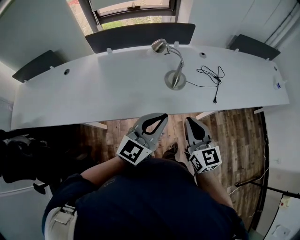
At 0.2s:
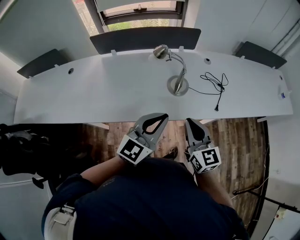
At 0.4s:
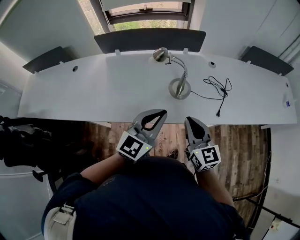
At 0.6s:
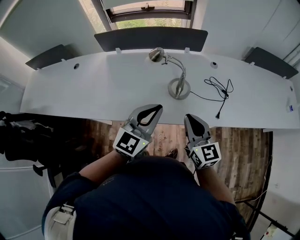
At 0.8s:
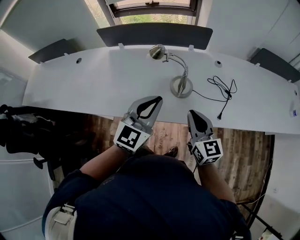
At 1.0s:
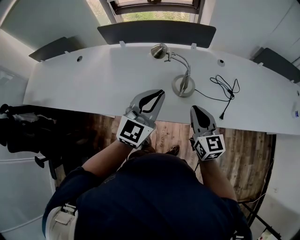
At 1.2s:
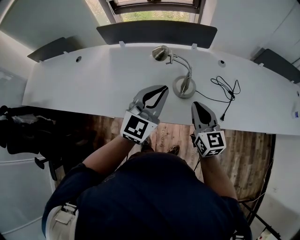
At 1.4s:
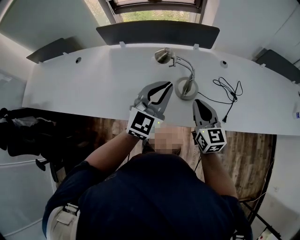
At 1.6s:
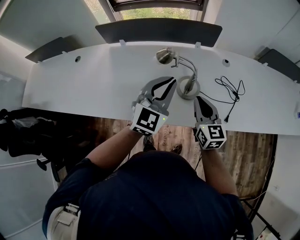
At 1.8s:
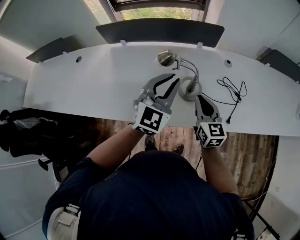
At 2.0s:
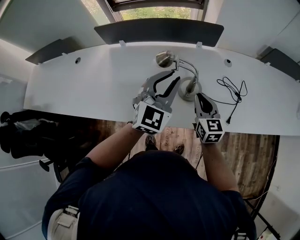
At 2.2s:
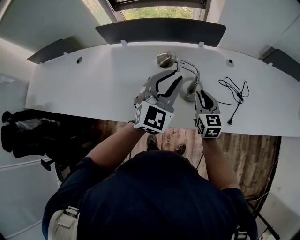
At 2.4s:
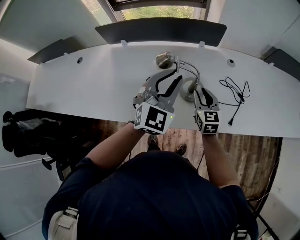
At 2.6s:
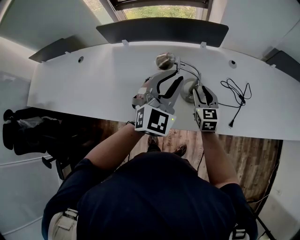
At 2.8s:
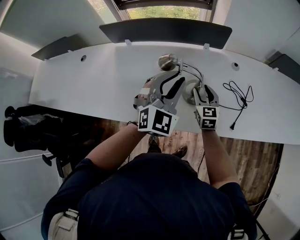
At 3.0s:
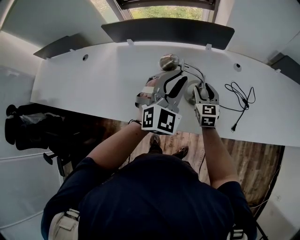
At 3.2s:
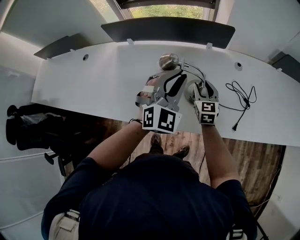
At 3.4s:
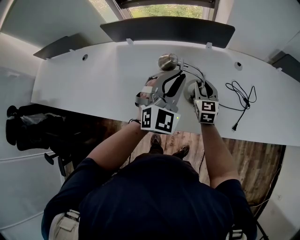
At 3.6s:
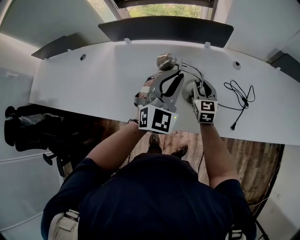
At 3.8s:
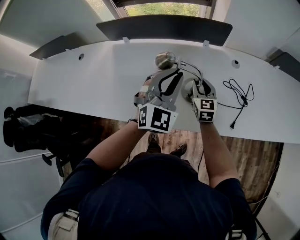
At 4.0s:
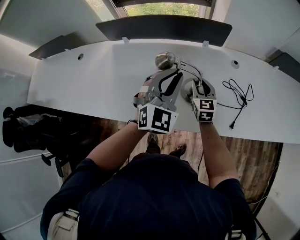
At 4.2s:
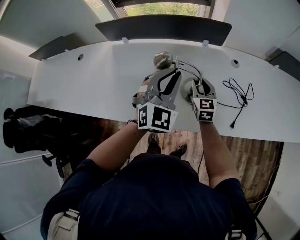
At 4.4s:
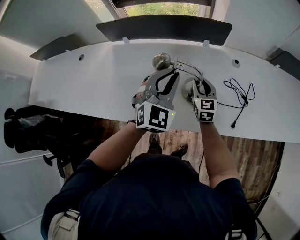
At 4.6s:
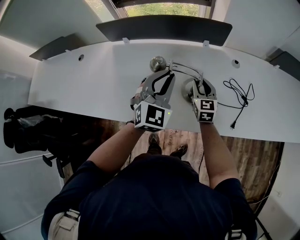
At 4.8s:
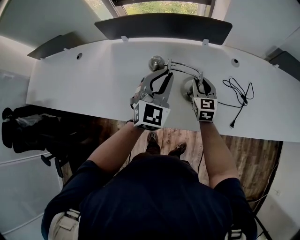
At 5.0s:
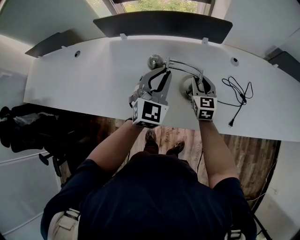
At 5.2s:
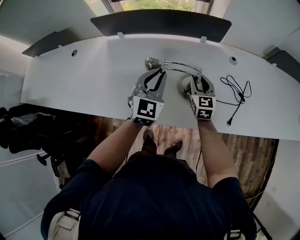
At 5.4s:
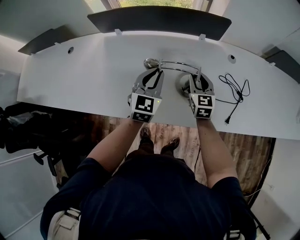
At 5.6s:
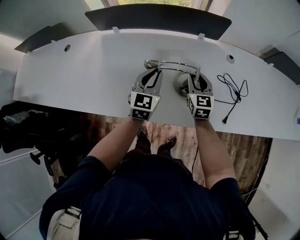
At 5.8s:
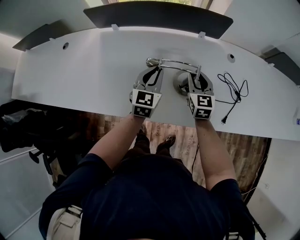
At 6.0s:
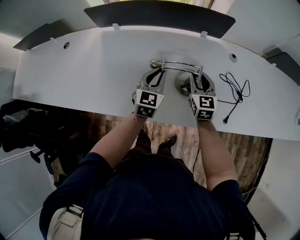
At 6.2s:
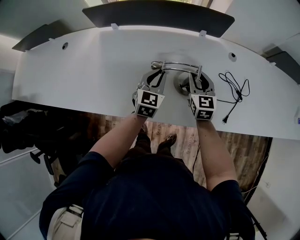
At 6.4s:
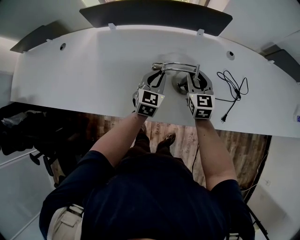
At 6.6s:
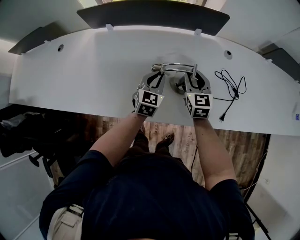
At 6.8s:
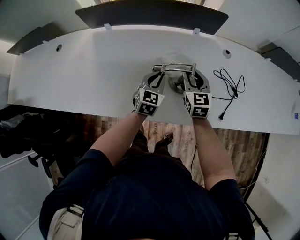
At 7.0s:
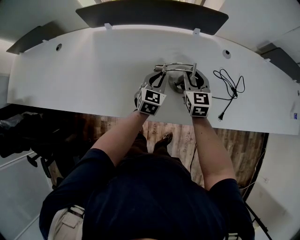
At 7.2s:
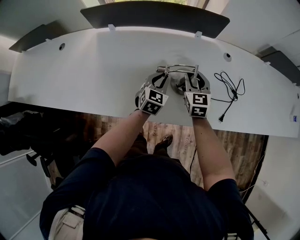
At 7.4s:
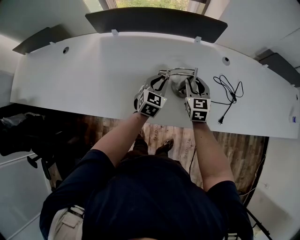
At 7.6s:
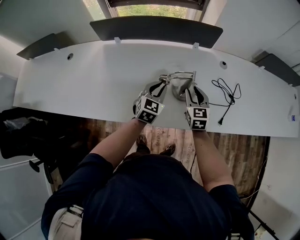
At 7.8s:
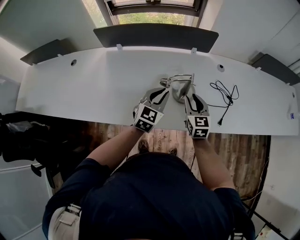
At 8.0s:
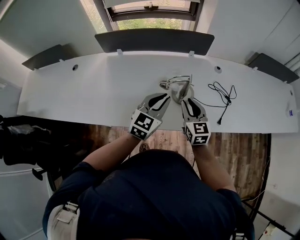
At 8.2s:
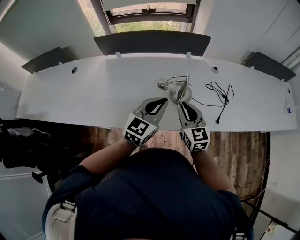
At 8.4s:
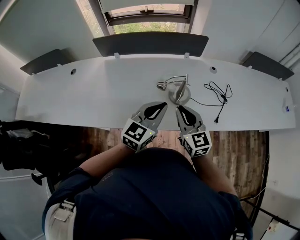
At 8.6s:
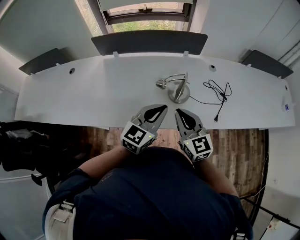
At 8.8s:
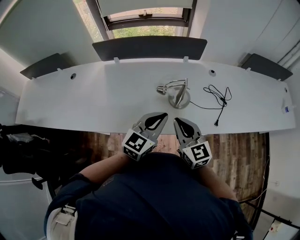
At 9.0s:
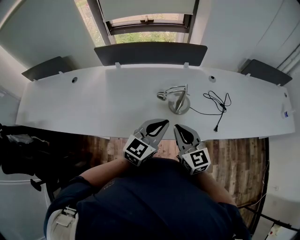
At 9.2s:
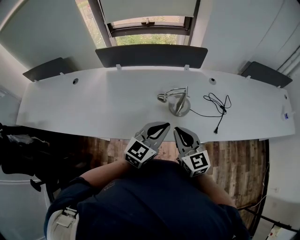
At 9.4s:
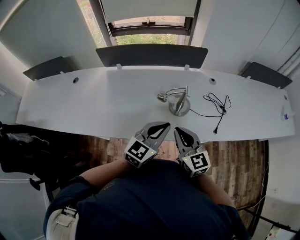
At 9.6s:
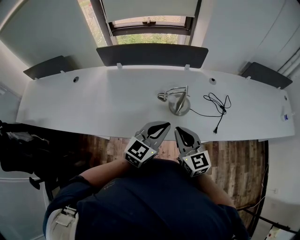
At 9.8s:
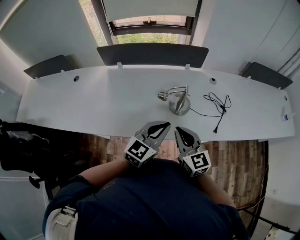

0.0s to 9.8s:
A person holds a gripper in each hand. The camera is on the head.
0.0s to 1.4s: The two grippers go about 20 cm forward. The left gripper swivels approximately 20 degrees.
1.4s to 2.8s: The right gripper is displaced forward and downward by approximately 20 cm, and opens up. Meanwhile the left gripper heads forward, covering roughly 5 cm, and turns by about 20 degrees.
2.8s to 4.2s: There are only small adjustments of the grippers.
4.2s to 5.6s: The left gripper moves downward and to the left, roughly 15 cm, and turns by some 30 degrees.
5.6s to 7.0s: The left gripper shifts approximately 10 cm downward.
7.0s to 8.4s: The right gripper is displaced backward and upward by approximately 25 cm, and closes. Meanwhile the left gripper is displaced upward and backward by about 30 cm, and turns by approximately 30 degrees.
8.4s to 9.8s: The grippers make only small movements.

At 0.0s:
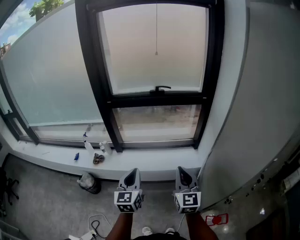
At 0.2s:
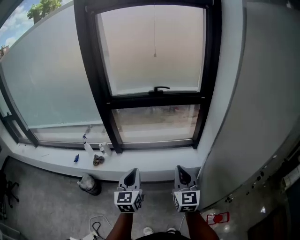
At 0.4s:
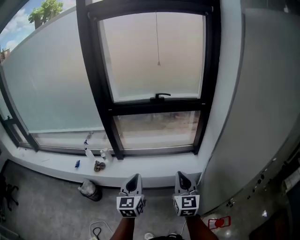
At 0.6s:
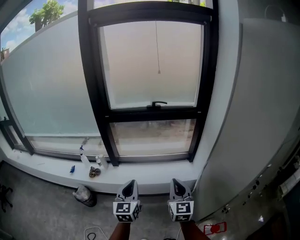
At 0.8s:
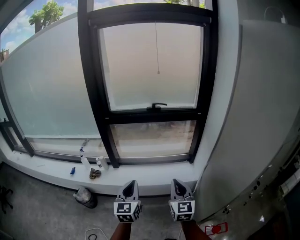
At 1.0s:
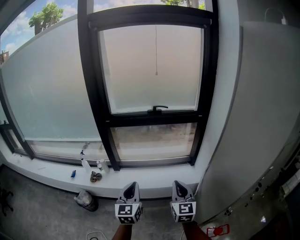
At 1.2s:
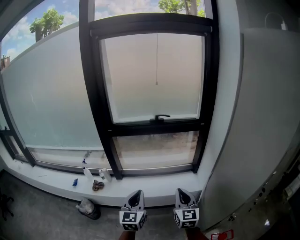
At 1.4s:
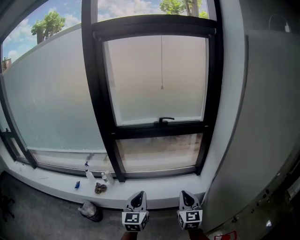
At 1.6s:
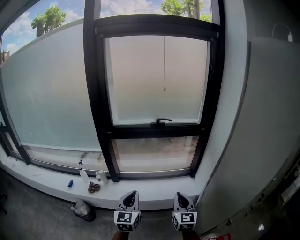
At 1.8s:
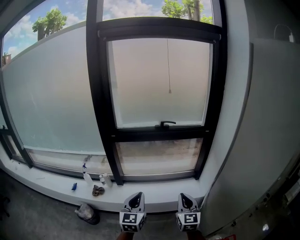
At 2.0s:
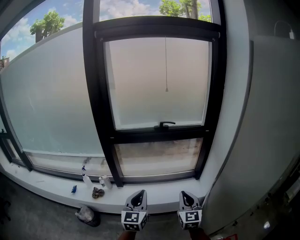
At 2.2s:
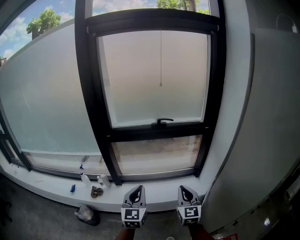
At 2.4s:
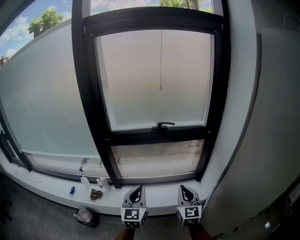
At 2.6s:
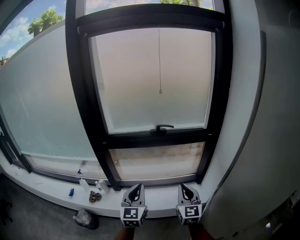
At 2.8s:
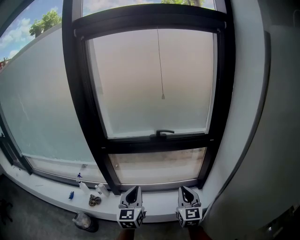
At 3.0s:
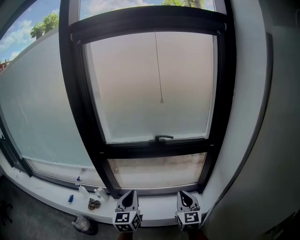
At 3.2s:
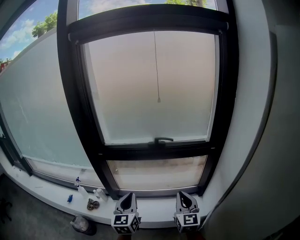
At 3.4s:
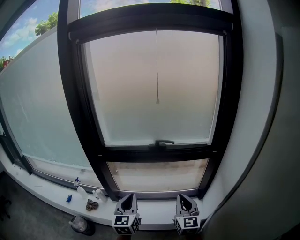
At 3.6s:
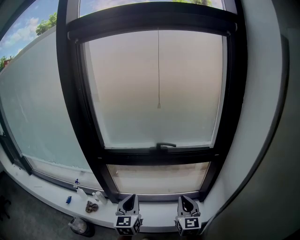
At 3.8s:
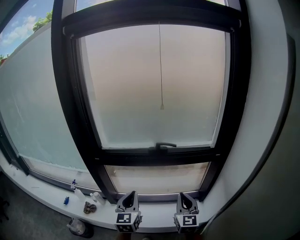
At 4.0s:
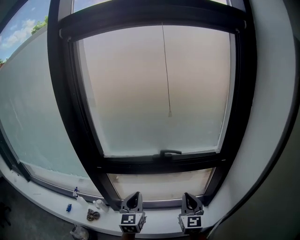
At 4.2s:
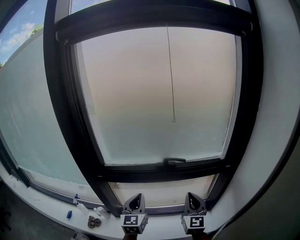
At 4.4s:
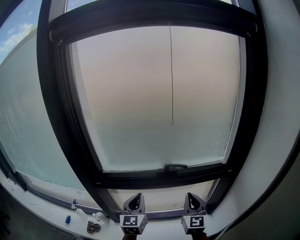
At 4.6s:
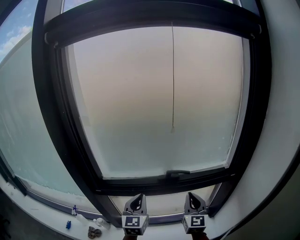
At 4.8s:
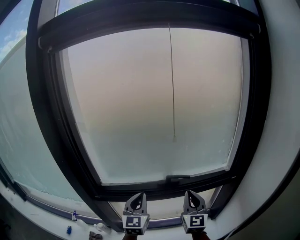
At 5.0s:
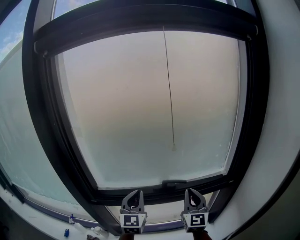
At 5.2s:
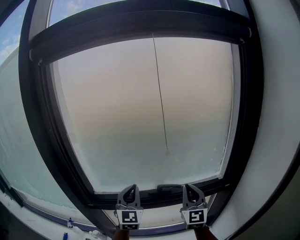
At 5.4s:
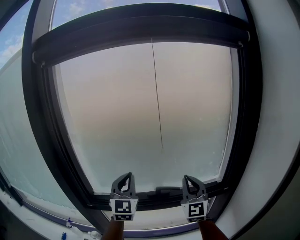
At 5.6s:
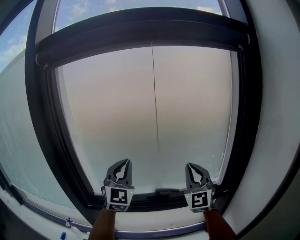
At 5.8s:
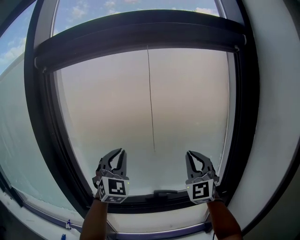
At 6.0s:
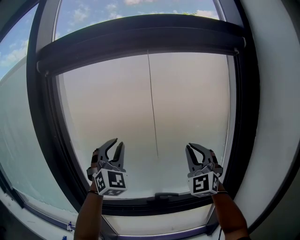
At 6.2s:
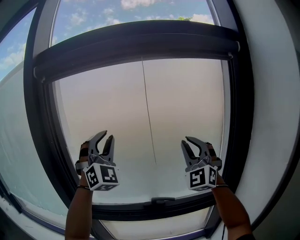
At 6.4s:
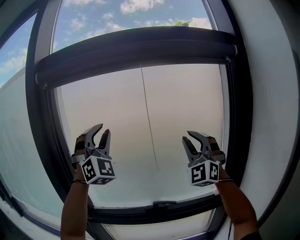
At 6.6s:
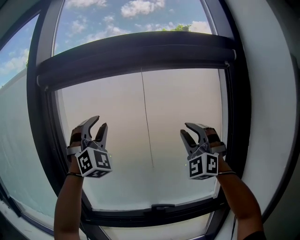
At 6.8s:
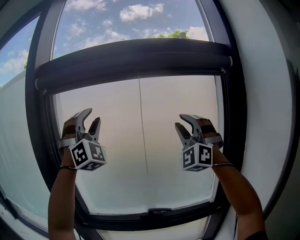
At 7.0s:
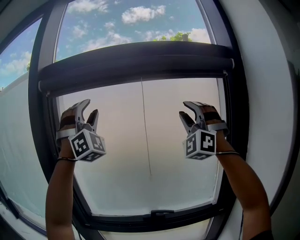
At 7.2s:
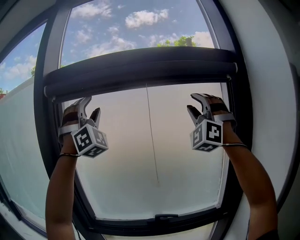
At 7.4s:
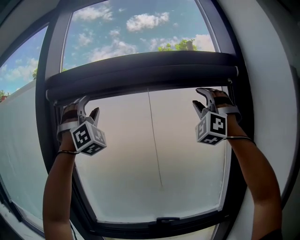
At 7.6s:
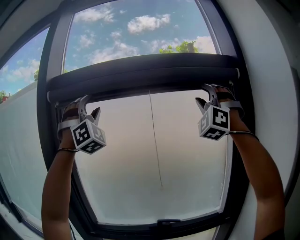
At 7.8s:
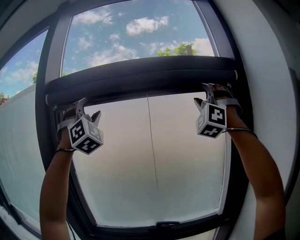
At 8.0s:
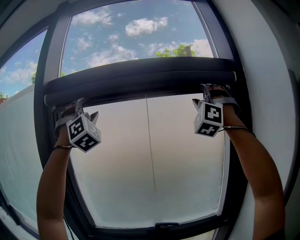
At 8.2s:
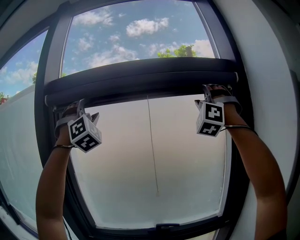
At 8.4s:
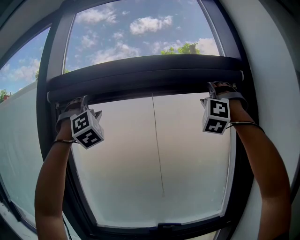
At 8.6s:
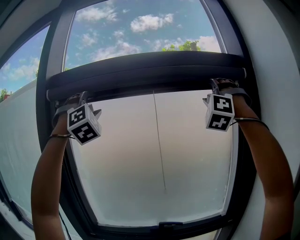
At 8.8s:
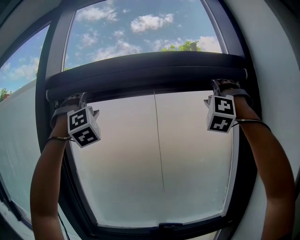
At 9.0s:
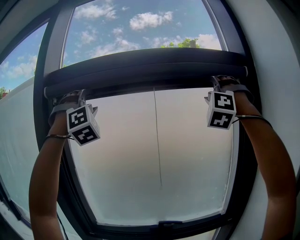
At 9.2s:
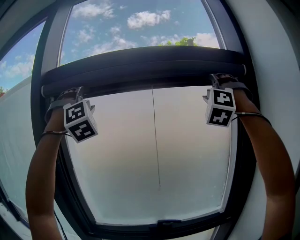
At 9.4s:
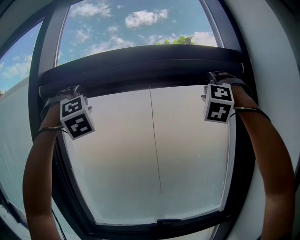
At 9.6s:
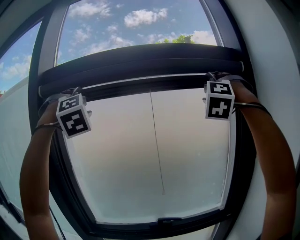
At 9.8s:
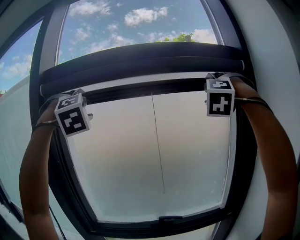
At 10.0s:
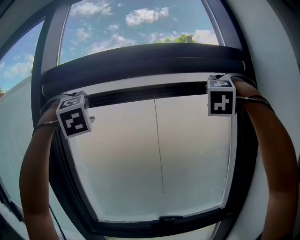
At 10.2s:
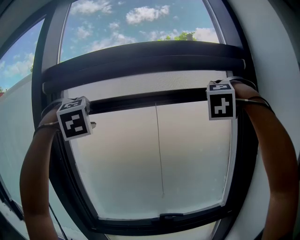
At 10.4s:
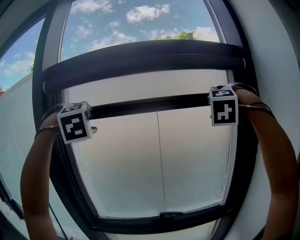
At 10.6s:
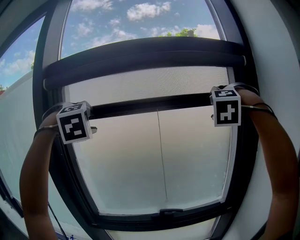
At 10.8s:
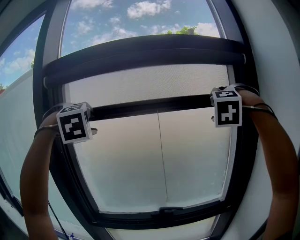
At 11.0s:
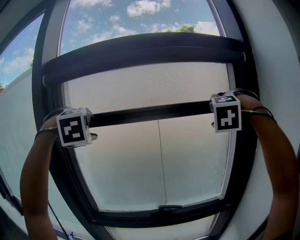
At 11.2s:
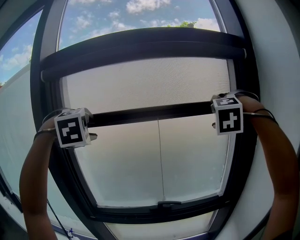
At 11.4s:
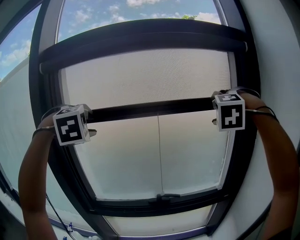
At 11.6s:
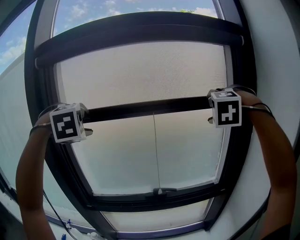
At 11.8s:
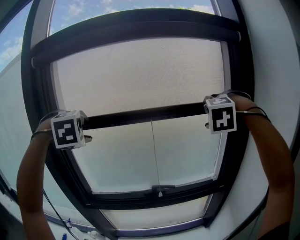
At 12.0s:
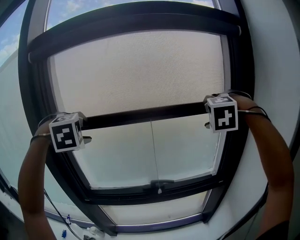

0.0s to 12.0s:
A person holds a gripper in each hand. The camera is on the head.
0.0s to 1.6s: The left gripper moves to the left, approximately 5 cm. Meanwhile the right gripper ends up some 5 cm from where it was.
1.6s to 3.0s: The two grippers go some 20 cm forward.
3.0s to 4.4s: Both grippers move forward, approximately 25 cm.
4.4s to 6.0s: The left gripper heads upward, covering approximately 35 cm, and twists some 60 degrees clockwise, seen from behind. The right gripper goes approximately 35 cm upward and forward, and twists some 40 degrees counterclockwise, seen from behind.
6.0s to 7.6s: The two grippers go about 30 cm upward. The right gripper twists approximately 40 degrees counterclockwise, seen from behind, and opens up; the left gripper changes its angle by roughly 40 degrees, and opens.
7.6s to 9.0s: The grippers make only small movements.
9.0s to 10.4s: Both grippers travel together downward, approximately 10 cm. The right gripper angles its fingers downward, by approximately 30 degrees; the left gripper tilts its fingers about 40 degrees downward.
10.4s to 12.0s: Both grippers travel together downward, approximately 15 cm. The right gripper rotates approximately 20 degrees.

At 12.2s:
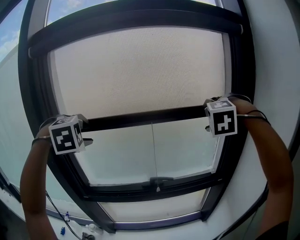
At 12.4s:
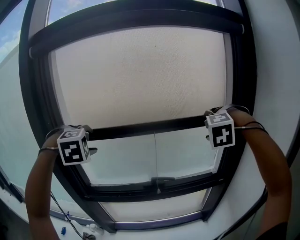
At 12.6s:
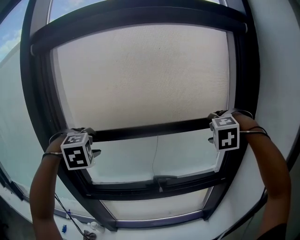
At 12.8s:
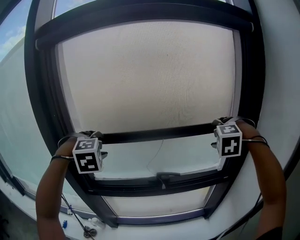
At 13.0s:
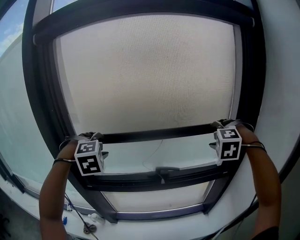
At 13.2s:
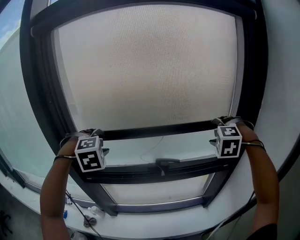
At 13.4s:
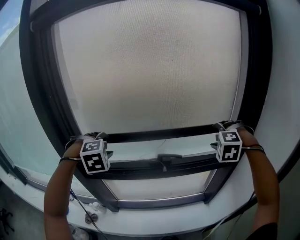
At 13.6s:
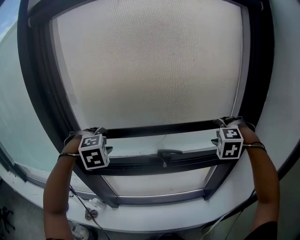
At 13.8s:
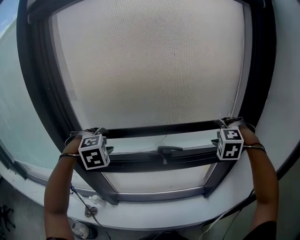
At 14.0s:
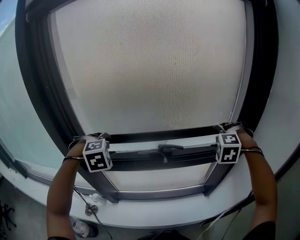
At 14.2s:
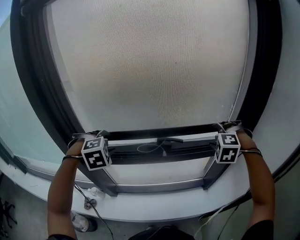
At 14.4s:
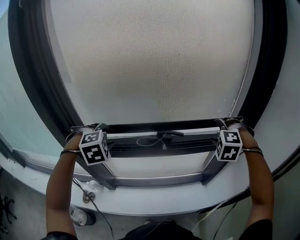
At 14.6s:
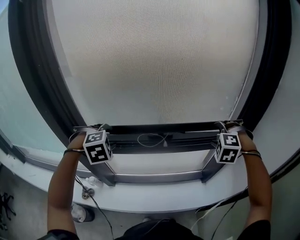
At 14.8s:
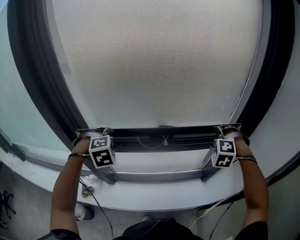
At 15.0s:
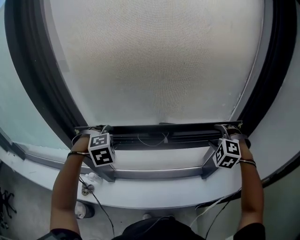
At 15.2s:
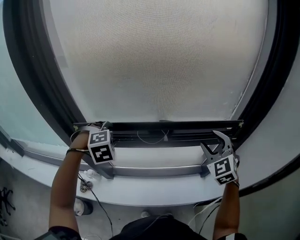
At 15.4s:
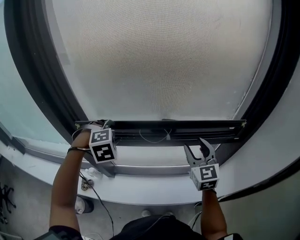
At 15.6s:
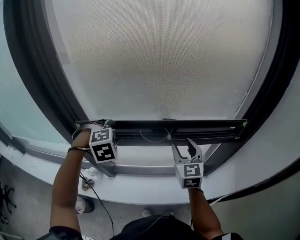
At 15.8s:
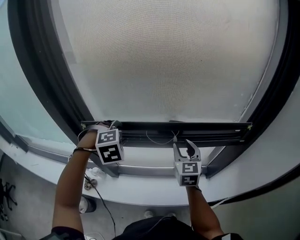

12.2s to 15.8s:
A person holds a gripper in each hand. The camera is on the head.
12.2s to 14.0s: Both grippers travel together downward, roughly 25 cm.
14.0s to 15.8s: The left gripper moves downward, roughly 10 cm; the right gripper shifts about 20 cm to the left and downward, and twists roughly 70 degrees clockwise, seen from behind.
